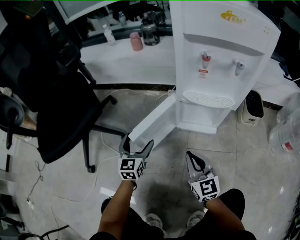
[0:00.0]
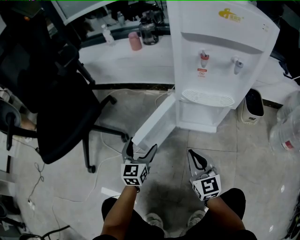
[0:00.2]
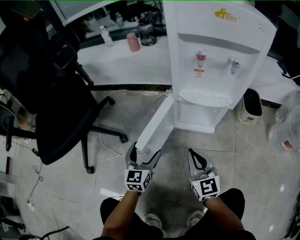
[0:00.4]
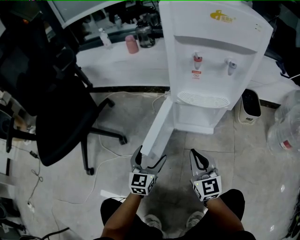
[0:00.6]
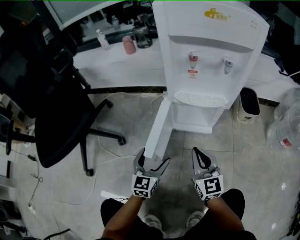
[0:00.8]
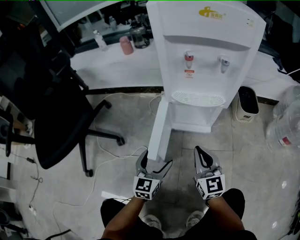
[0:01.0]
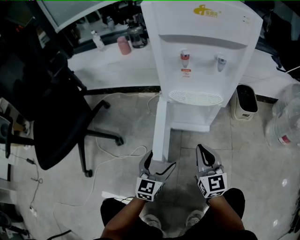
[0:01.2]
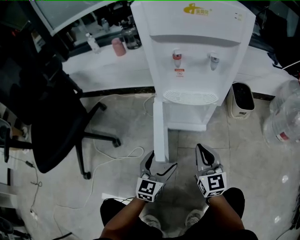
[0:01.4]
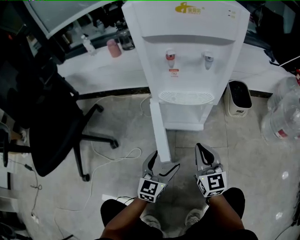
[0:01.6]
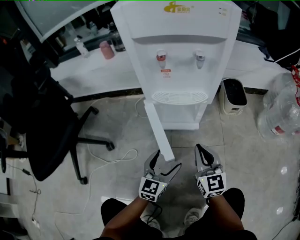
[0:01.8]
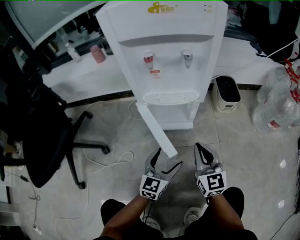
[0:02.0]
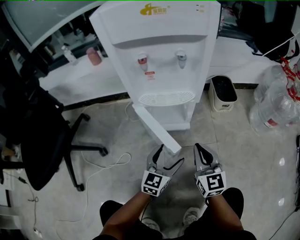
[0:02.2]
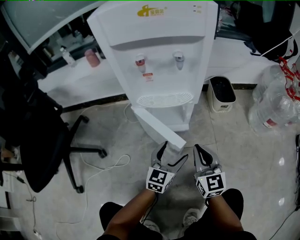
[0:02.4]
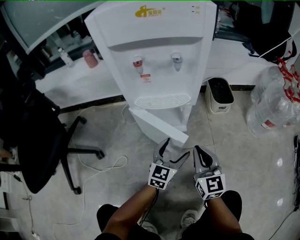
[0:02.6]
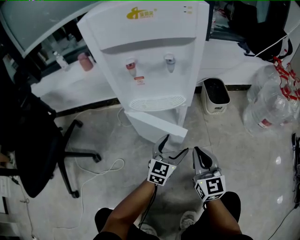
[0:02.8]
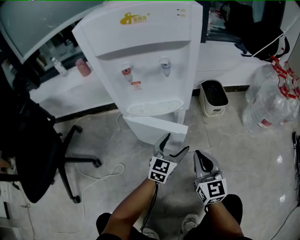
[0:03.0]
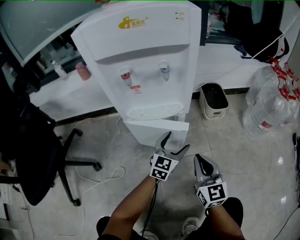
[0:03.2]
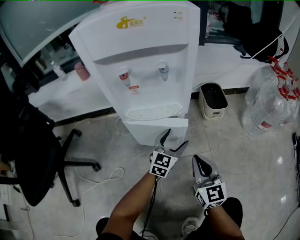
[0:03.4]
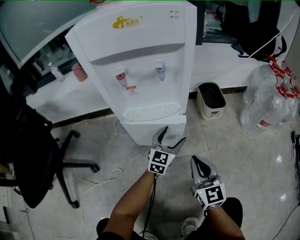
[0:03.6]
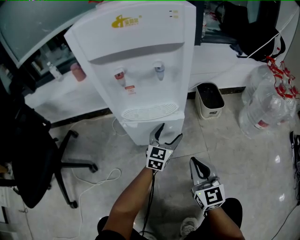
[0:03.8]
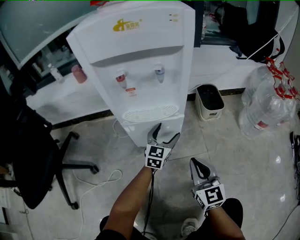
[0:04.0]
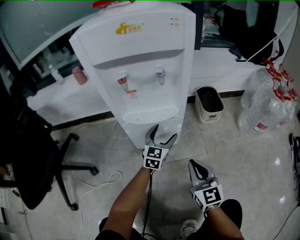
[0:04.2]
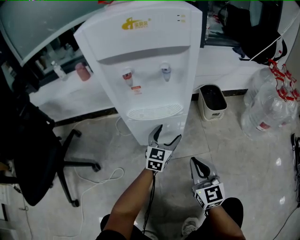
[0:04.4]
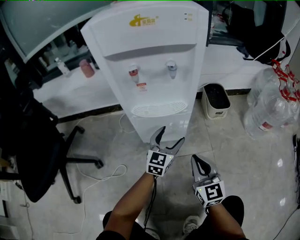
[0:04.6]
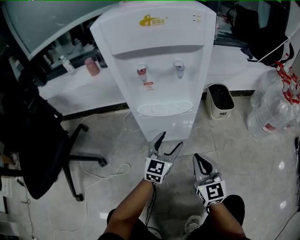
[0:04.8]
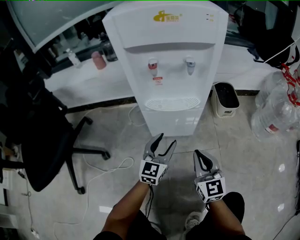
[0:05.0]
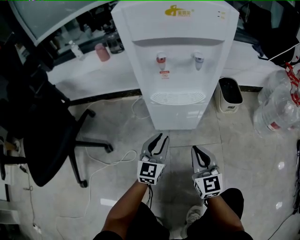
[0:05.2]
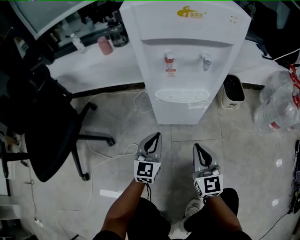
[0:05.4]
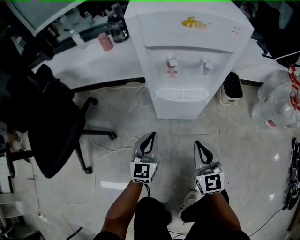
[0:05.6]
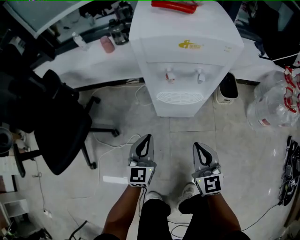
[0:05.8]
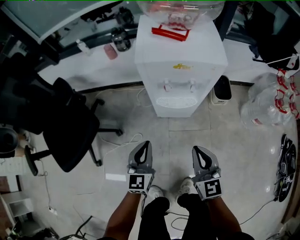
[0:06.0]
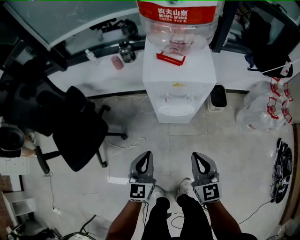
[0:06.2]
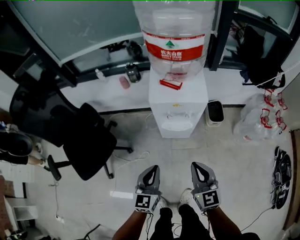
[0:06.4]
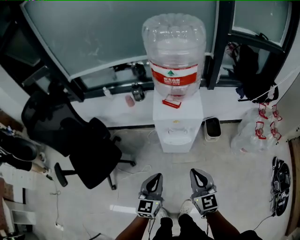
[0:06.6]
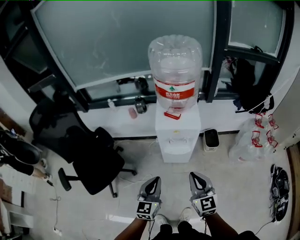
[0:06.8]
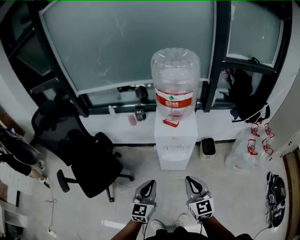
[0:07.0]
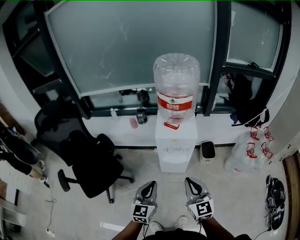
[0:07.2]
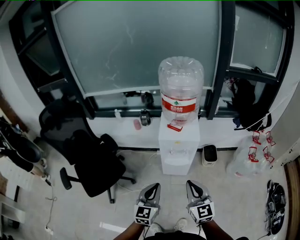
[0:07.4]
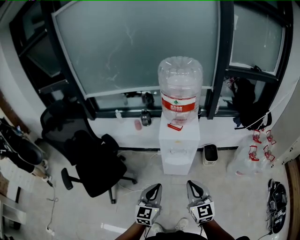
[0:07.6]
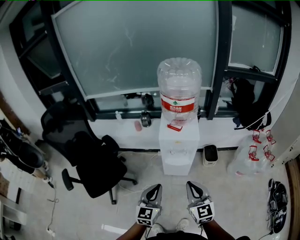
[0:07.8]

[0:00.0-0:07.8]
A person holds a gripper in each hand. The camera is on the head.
0:00.0 to 0:01.6: The right gripper goes about 10 cm to the right, while the left gripper goes approximately 20 cm to the right and backward, and turns by about 20 degrees.
0:01.6 to 0:03.2: The left gripper is displaced forward and to the right by approximately 20 cm. The right gripper travels to the right by roughly 10 cm.
0:04.6 to 0:06.2: The right gripper goes some 35 cm upward. The left gripper moves upward, backward and to the left, some 50 cm, rotates approximately 20 degrees, and closes its fingers.
0:06.2 to 0:07.8: Both grippers move upward and backward, approximately 20 cm.

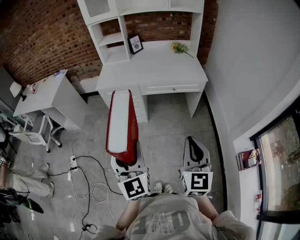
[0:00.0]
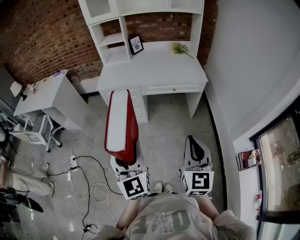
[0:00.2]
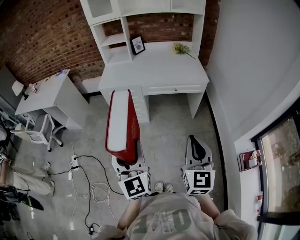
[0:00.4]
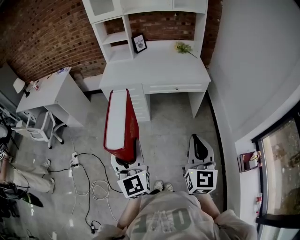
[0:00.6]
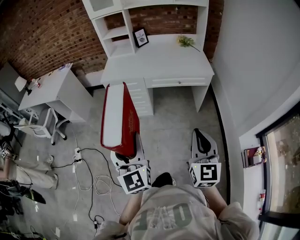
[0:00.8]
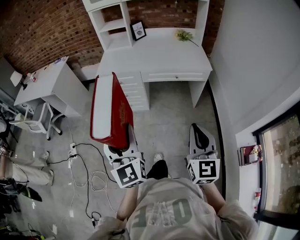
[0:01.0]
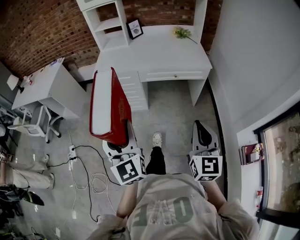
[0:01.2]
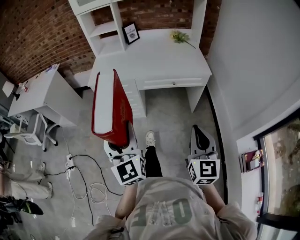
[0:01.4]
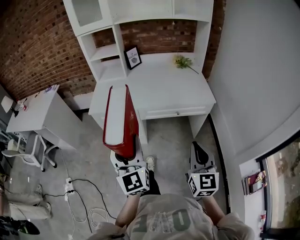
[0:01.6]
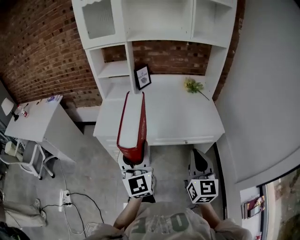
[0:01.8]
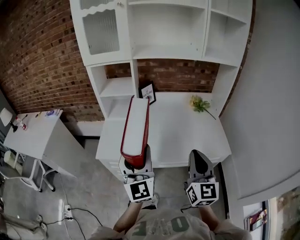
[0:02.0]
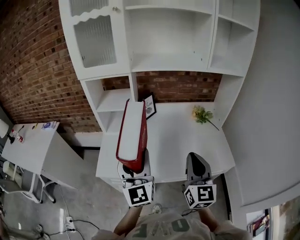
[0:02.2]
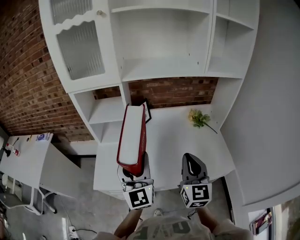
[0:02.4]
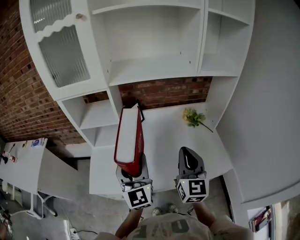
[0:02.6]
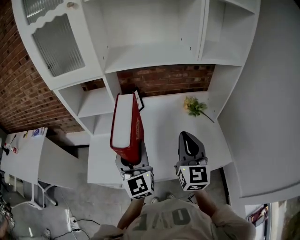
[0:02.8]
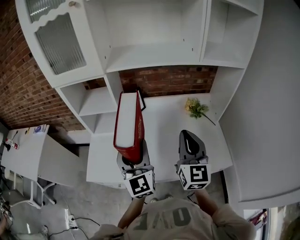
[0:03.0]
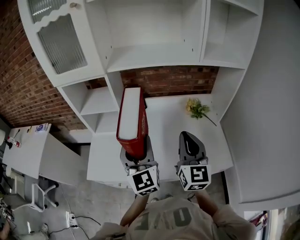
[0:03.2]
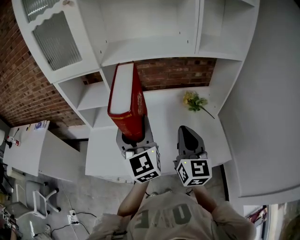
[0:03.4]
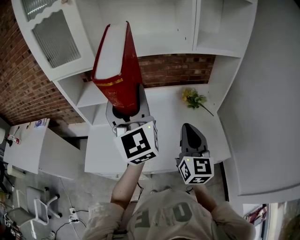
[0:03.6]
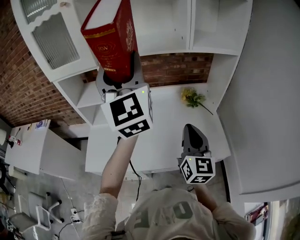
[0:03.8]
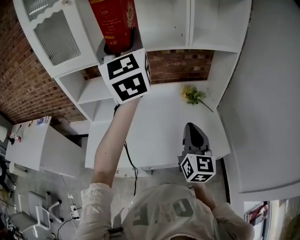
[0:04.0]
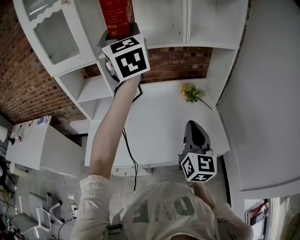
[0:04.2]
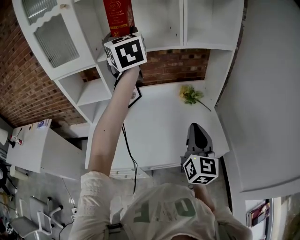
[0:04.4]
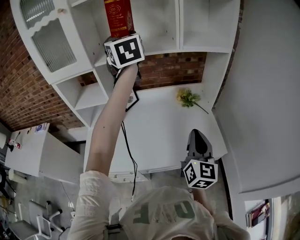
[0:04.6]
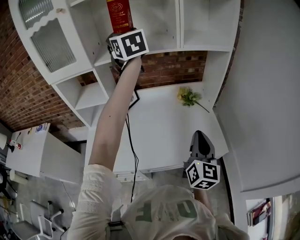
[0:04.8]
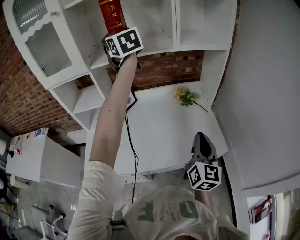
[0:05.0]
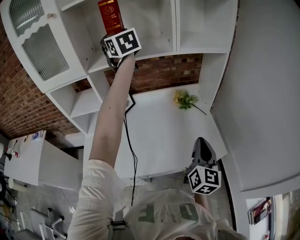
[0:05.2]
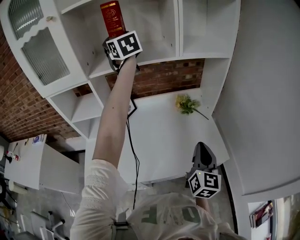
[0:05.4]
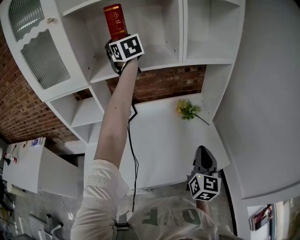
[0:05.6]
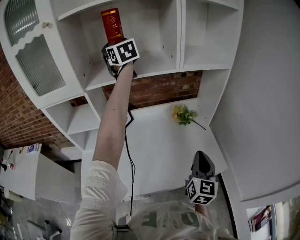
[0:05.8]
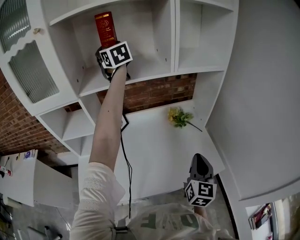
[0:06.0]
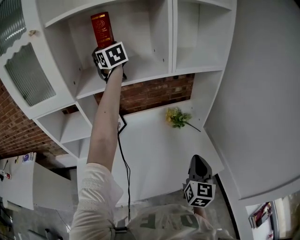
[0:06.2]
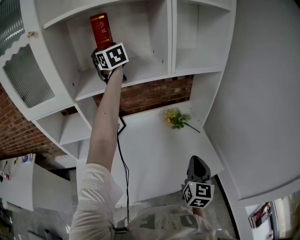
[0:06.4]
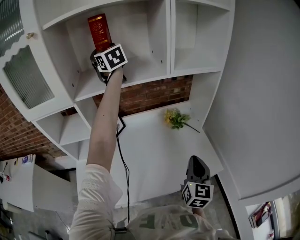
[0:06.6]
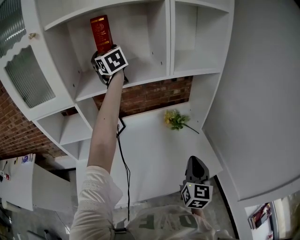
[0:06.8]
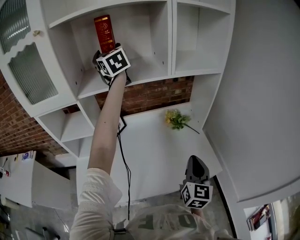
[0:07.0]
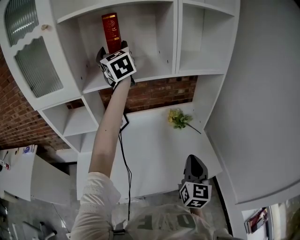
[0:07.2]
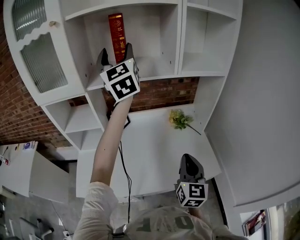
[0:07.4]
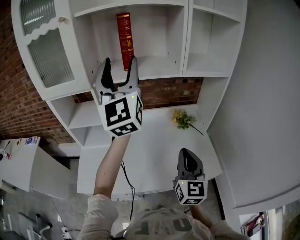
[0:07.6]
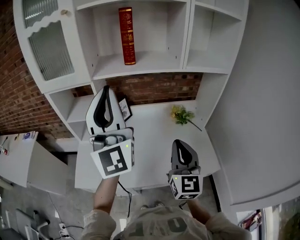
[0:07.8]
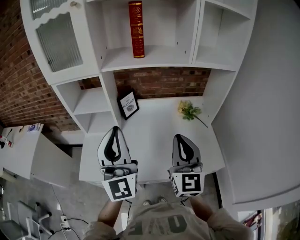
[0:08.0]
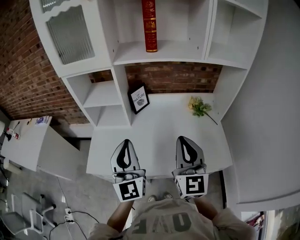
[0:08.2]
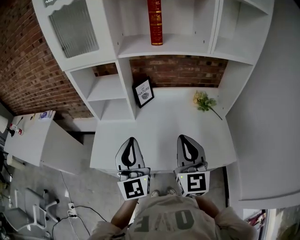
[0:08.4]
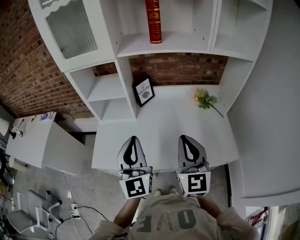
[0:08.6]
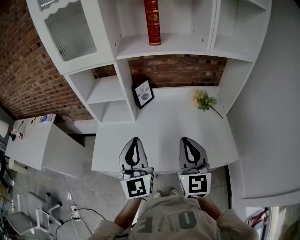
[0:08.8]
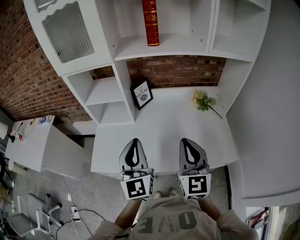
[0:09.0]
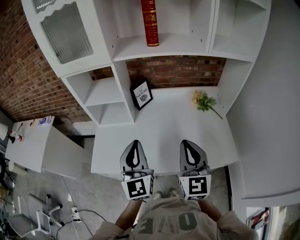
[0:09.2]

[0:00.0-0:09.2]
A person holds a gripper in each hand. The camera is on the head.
0:00.0 to 0:01.6: Both grippers travel together forward, roughly 25 cm.
0:01.6 to 0:03.0: The two grippers travel together, forward, some 50 cm.
0:03.0 to 0:04.6: The left gripper is displaced upward and forward by some 35 cm; the right gripper is displaced to the right and backward by about 15 cm.
0:04.6 to 0:06.2: The left gripper moves forward, approximately 20 cm; the right gripper moves downward, some 5 cm.
0:06.2 to 0:07.6: The left gripper travels backward by about 30 cm, and tilts its fingers approximately 30 degrees upward; the right gripper goes some 10 cm to the left and upward.
0:07.6 to 0:09.2: The right gripper goes about 10 cm to the left. The left gripper goes some 35 cm downward and backward, turns by approximately 30 degrees, and closes its fingers.

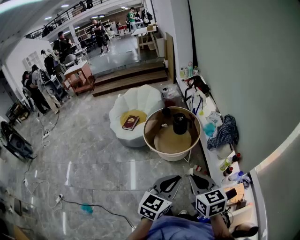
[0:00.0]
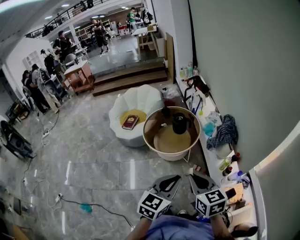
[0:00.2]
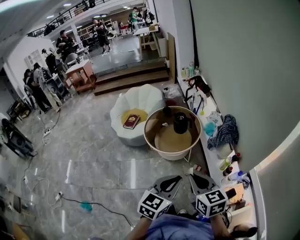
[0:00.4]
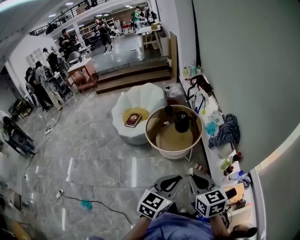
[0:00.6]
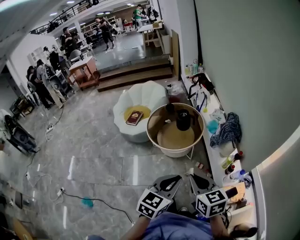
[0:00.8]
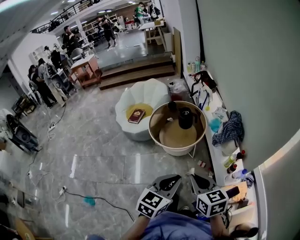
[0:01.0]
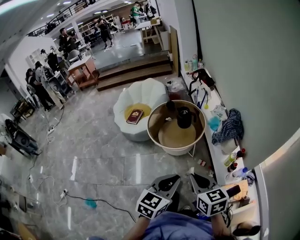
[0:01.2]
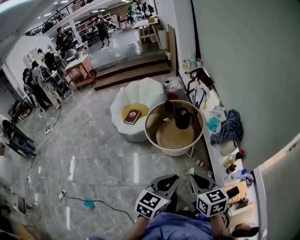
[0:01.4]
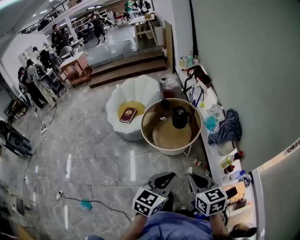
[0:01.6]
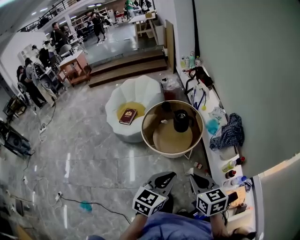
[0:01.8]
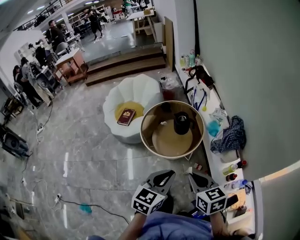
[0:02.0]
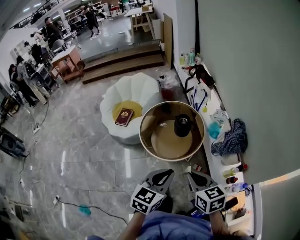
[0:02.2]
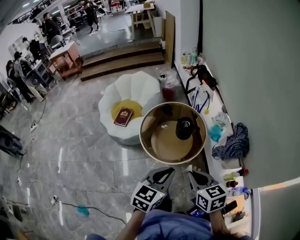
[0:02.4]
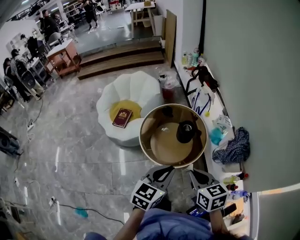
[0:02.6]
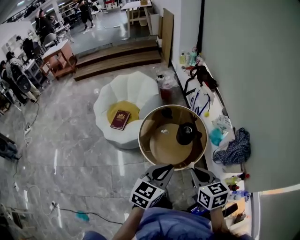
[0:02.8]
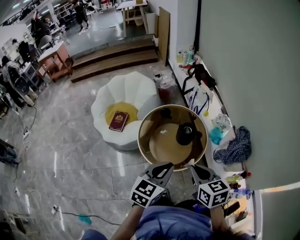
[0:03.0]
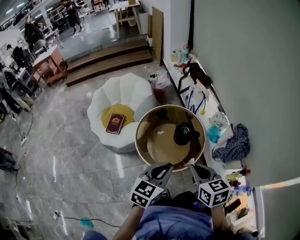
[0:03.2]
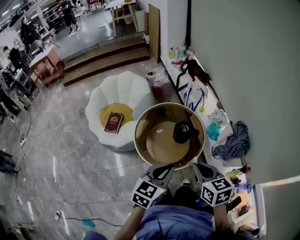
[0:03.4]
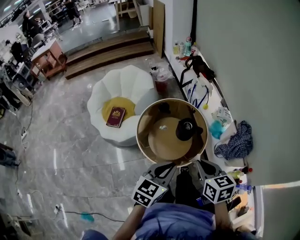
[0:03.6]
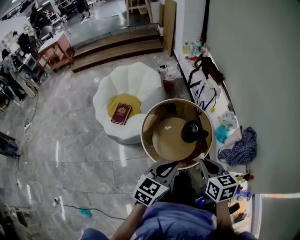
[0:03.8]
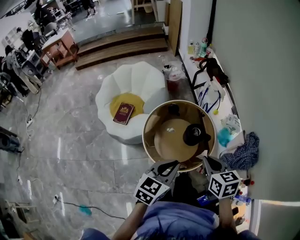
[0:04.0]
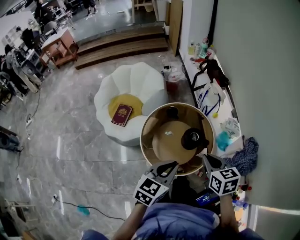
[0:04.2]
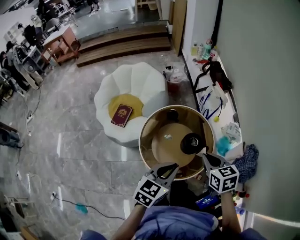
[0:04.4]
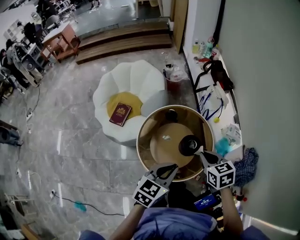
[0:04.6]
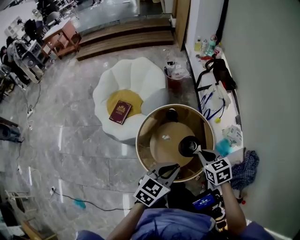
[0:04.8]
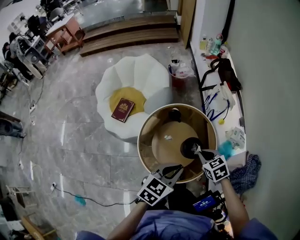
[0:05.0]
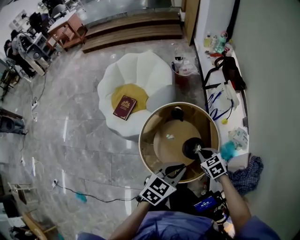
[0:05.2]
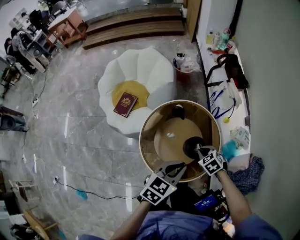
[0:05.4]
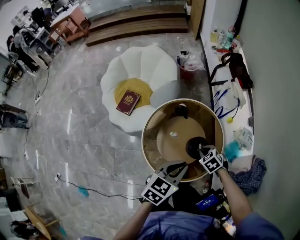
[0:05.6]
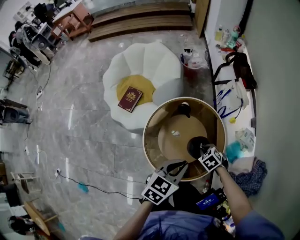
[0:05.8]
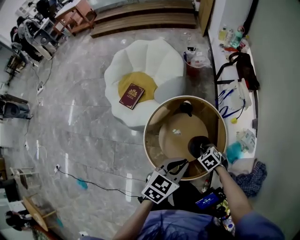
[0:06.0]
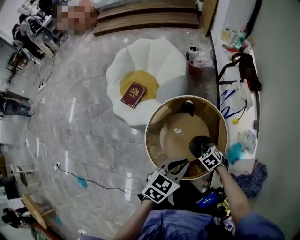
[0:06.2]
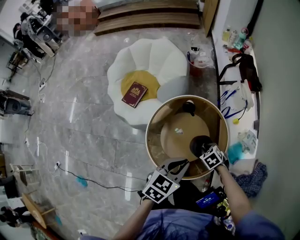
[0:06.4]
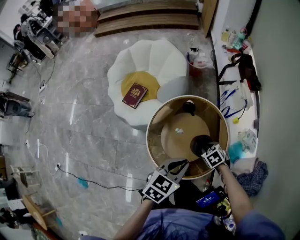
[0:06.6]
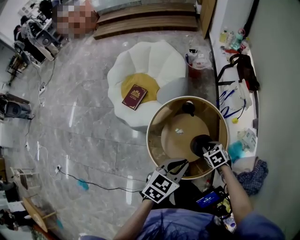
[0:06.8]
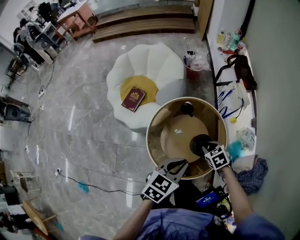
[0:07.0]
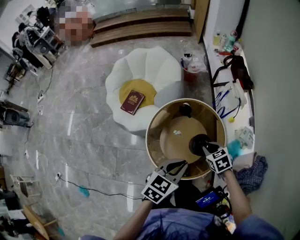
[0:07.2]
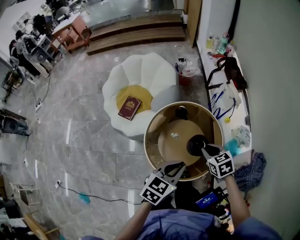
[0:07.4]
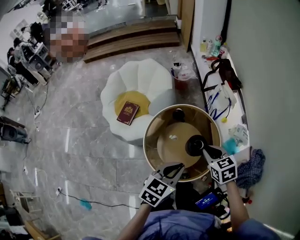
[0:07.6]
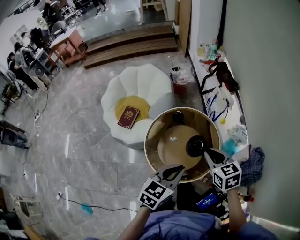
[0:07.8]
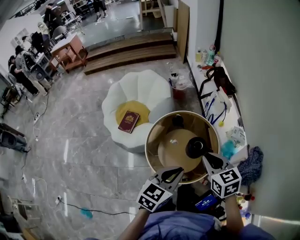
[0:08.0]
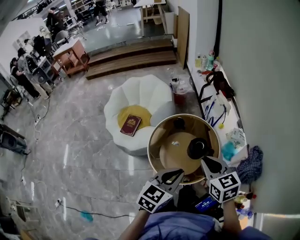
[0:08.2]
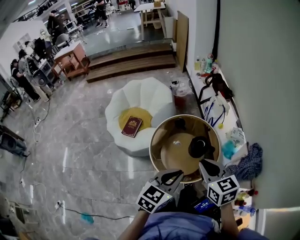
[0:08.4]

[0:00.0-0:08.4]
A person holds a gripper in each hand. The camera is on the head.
0:00.0 to 0:01.4: There are only small adjustments of the grippers.
0:01.4 to 0:02.8: The right gripper moves forward, about 30 cm, while the left gripper heads forward and to the left, covering roughly 35 cm.
0:02.8 to 0:04.2: Both grippers travel together forward, roughly 15 cm.
0:04.2 to 0:05.6: The right gripper heads downward and forward, covering about 30 cm, and rotates some 50 degrees; the left gripper moves forward and downward, some 15 cm.
0:05.6 to 0:07.0: The right gripper opens its fingers.
0:07.0 to 0:08.4: The right gripper heads upward and backward, covering roughly 35 cm, and tips its fingers upward by some 40 degrees; the left gripper heads backward and upward, covering about 20 cm.
